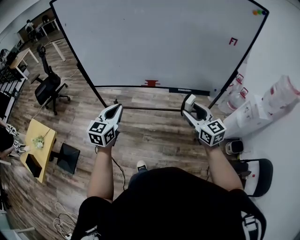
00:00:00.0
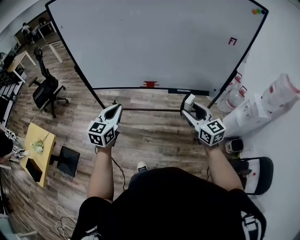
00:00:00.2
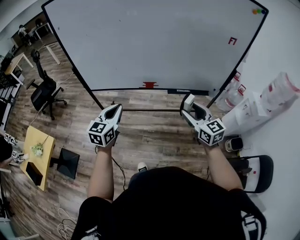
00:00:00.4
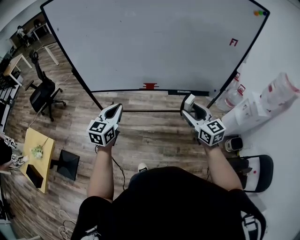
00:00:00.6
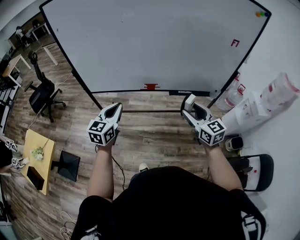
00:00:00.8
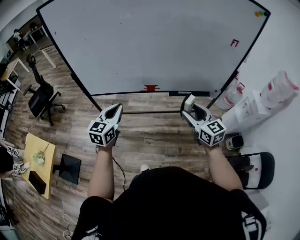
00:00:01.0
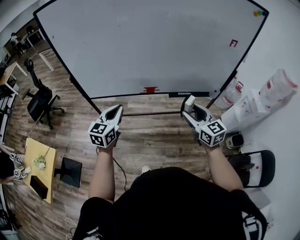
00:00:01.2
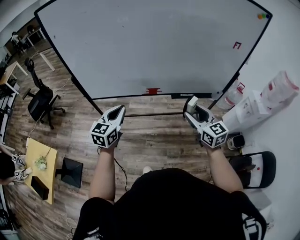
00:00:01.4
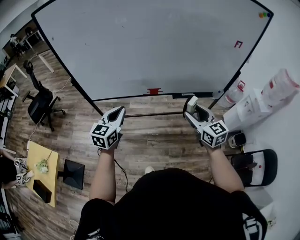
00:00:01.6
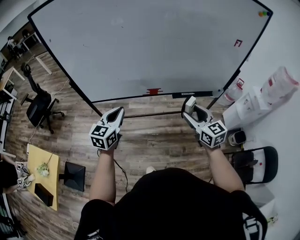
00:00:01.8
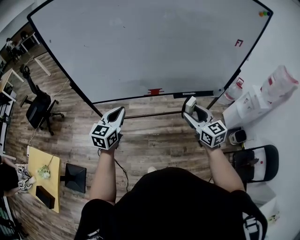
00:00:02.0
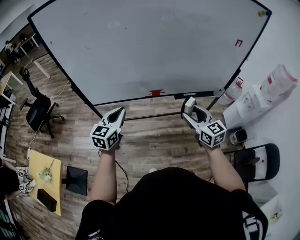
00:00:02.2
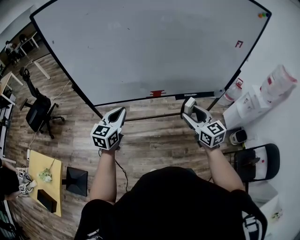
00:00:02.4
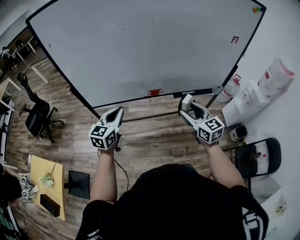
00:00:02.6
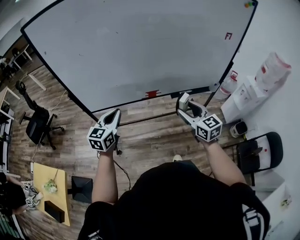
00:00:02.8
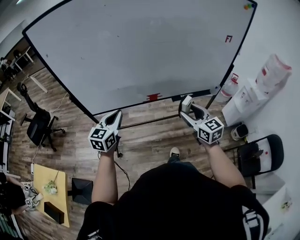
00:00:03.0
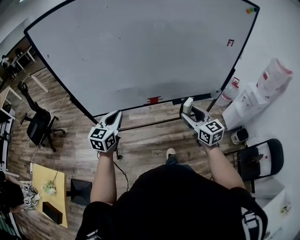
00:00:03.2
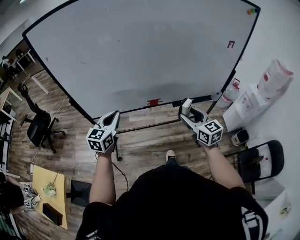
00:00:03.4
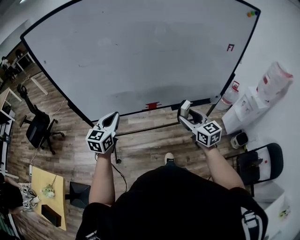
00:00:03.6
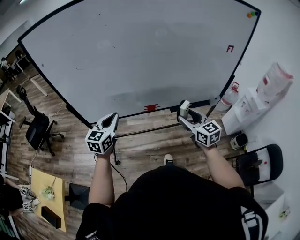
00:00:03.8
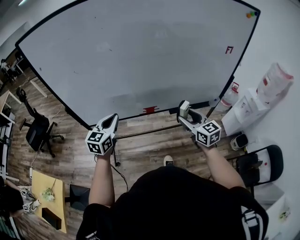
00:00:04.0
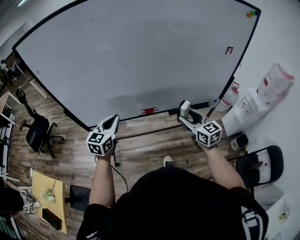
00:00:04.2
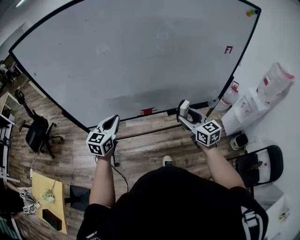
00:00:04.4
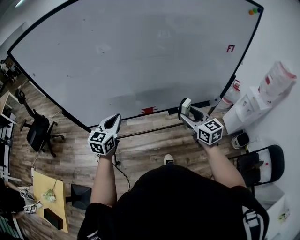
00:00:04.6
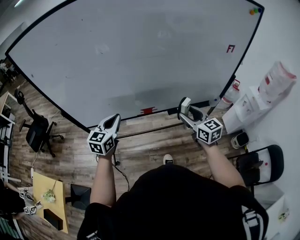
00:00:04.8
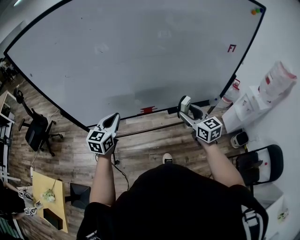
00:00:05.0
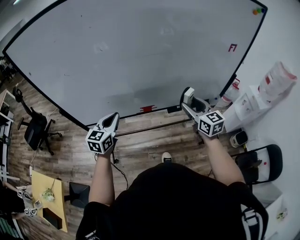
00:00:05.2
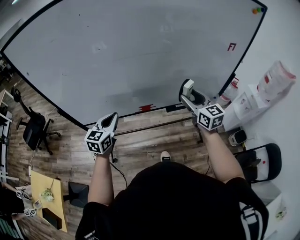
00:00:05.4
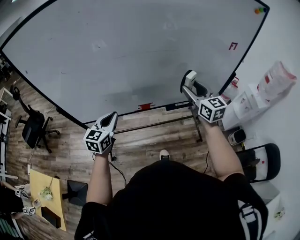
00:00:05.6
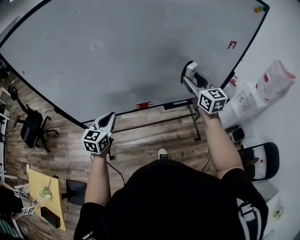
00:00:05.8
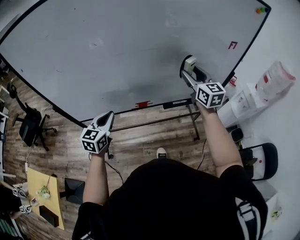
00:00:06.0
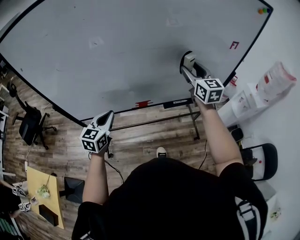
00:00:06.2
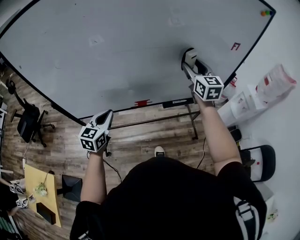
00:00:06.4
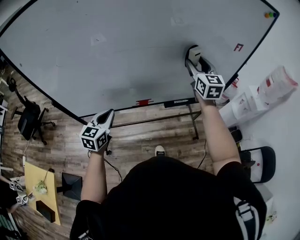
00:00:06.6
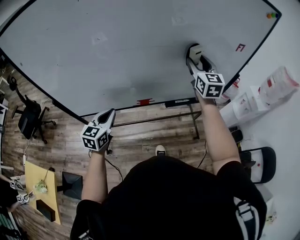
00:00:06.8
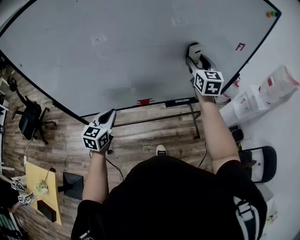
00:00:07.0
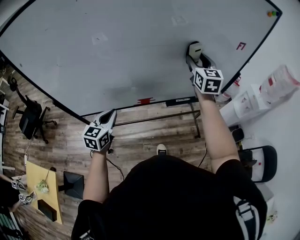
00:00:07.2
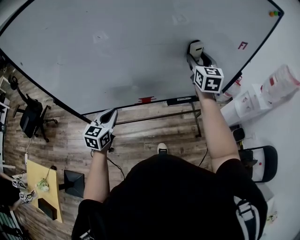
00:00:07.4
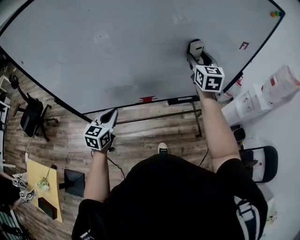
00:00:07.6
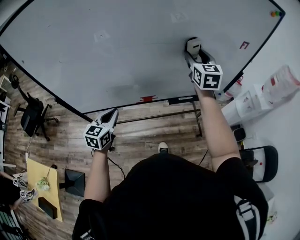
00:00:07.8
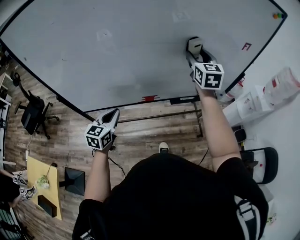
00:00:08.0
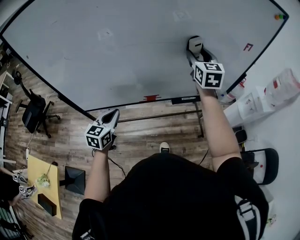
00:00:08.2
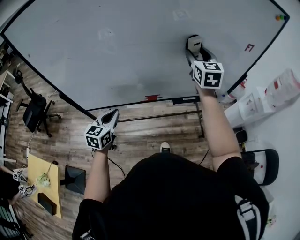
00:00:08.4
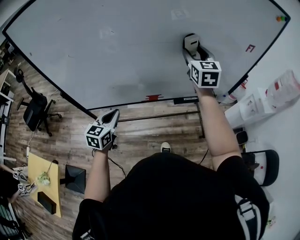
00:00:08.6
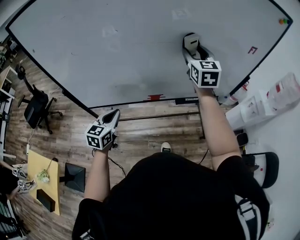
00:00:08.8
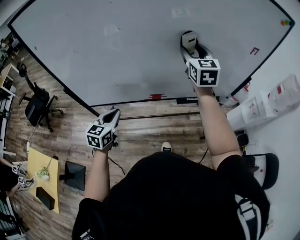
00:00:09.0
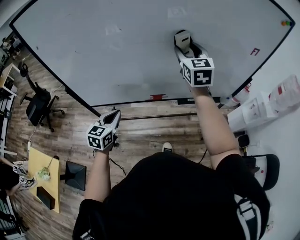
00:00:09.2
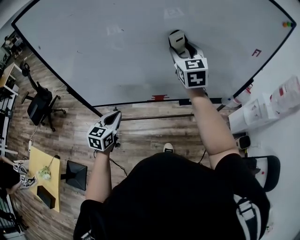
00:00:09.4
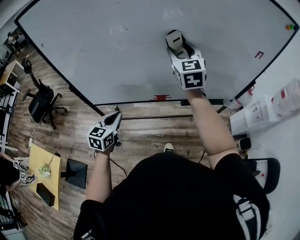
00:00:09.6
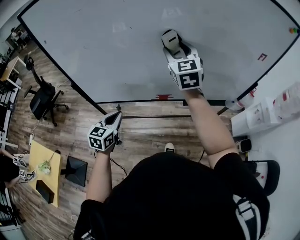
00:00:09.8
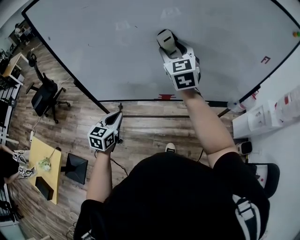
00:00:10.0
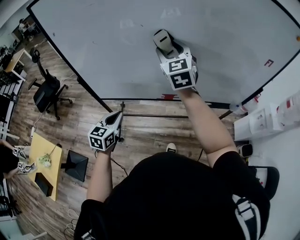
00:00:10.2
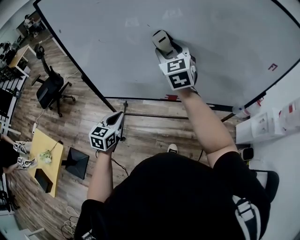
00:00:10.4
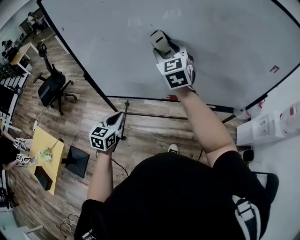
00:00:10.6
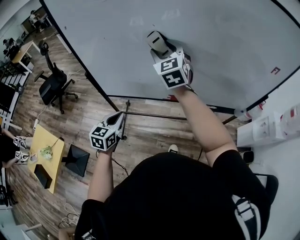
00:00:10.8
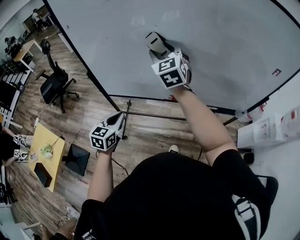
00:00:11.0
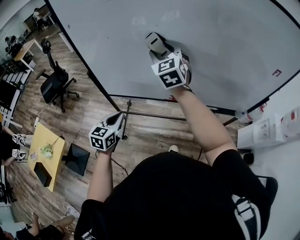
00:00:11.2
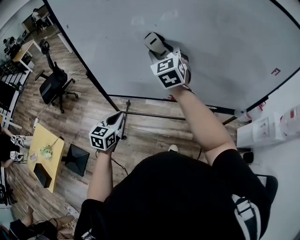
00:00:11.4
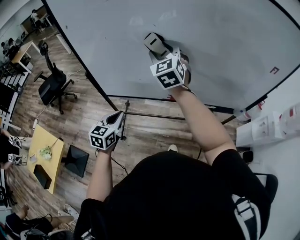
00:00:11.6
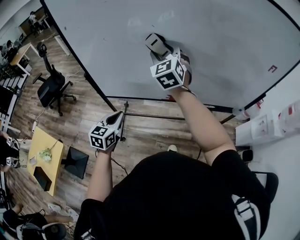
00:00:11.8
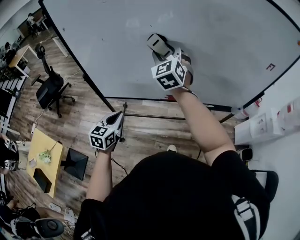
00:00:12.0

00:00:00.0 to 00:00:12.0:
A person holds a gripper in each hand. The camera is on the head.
00:00:00.0 to 00:00:01.6: Both grippers travel together forward and to the left, about 10 cm.
00:00:01.6 to 00:00:03.0: The left gripper shifts by some 5 cm.
00:00:03.0 to 00:00:04.4: The left gripper is displaced forward by about 10 cm. Meanwhile the right gripper heads forward and to the right, covering about 10 cm.
00:00:04.4 to 00:00:06.0: The right gripper heads forward and upward, covering roughly 20 cm.
00:00:06.0 to 00:00:07.6: The right gripper travels forward by about 5 cm.
00:00:07.6 to 00:00:09.0: The right gripper moves to the left, approximately 10 cm.
00:00:09.0 to 00:00:10.4: The right gripper shifts about 20 cm to the left, and rotates approximately 20 degrees; the left gripper goes approximately 5 cm to the left.
00:00:10.4 to 00:00:12.0: The grippers make only small movements.

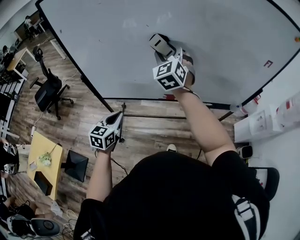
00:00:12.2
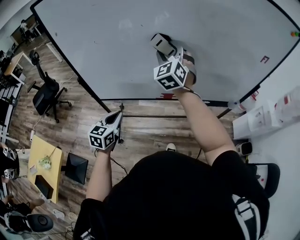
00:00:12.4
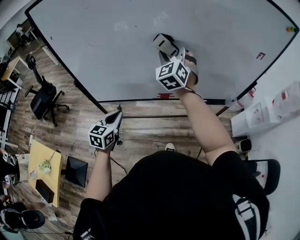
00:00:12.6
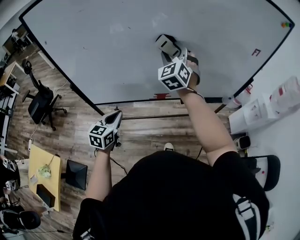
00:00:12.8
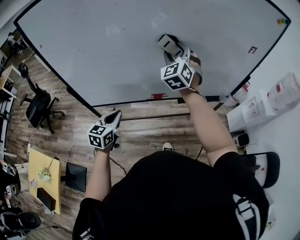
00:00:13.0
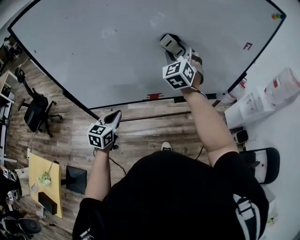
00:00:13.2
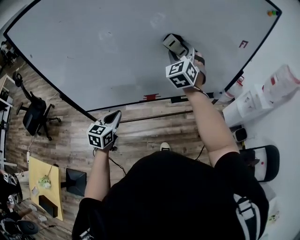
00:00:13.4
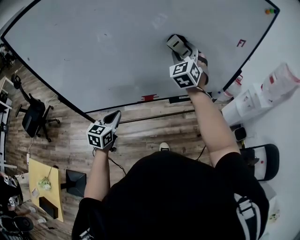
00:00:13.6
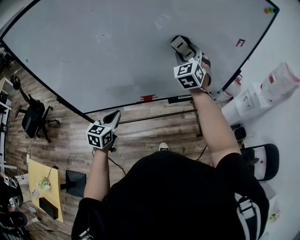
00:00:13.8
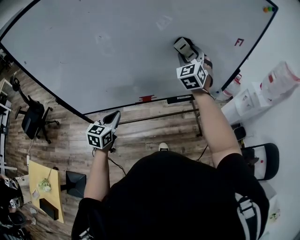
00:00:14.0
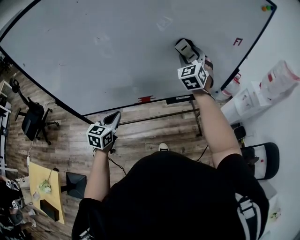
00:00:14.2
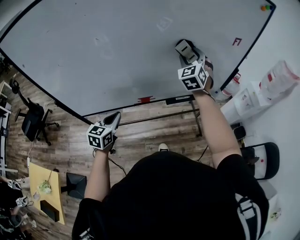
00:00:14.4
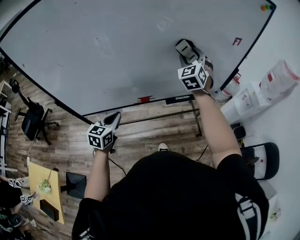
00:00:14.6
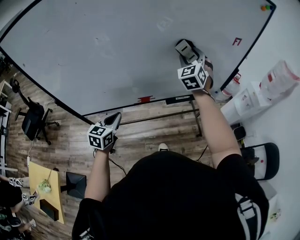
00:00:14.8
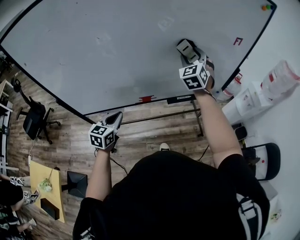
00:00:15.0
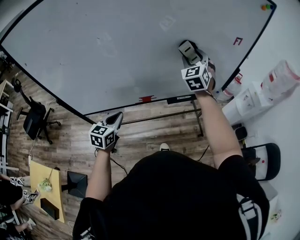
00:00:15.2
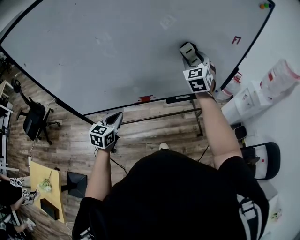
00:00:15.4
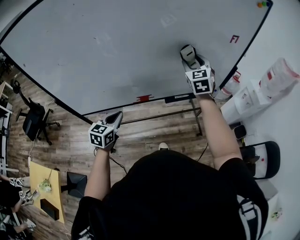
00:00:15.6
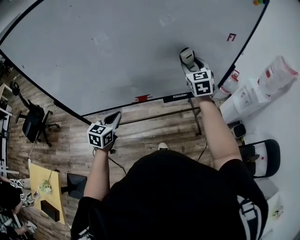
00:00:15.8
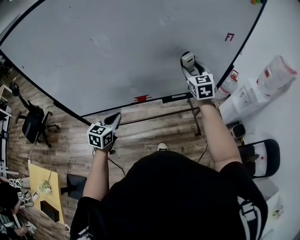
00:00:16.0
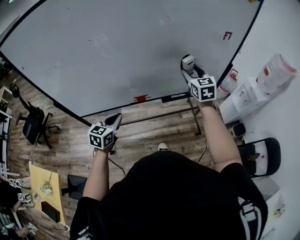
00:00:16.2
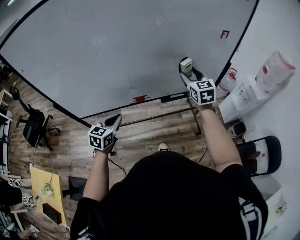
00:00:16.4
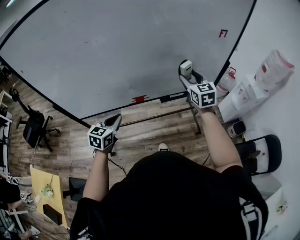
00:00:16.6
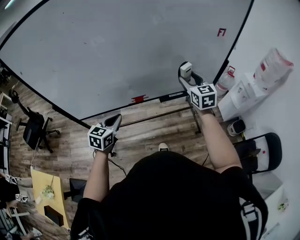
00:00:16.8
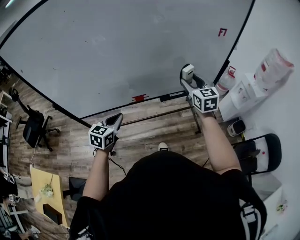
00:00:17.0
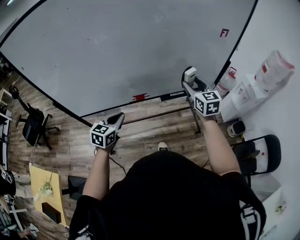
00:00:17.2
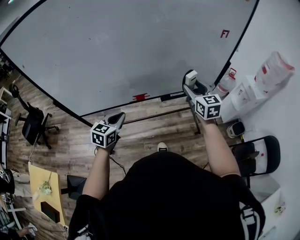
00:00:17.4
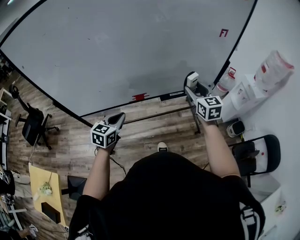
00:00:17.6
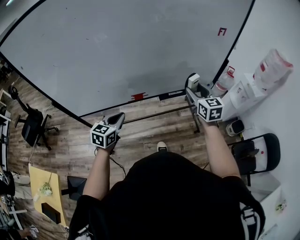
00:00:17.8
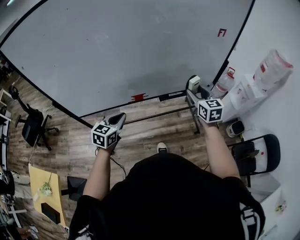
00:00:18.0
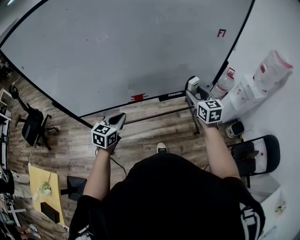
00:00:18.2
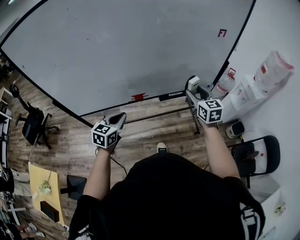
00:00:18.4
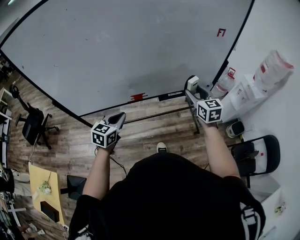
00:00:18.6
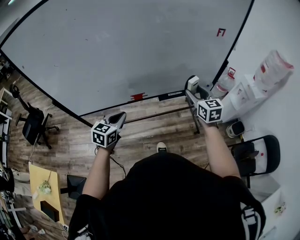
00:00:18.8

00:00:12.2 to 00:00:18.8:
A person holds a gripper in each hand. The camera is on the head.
00:00:12.2 to 00:00:13.8: The right gripper is displaced to the right by about 25 cm, and swivels some 20 degrees; the left gripper heads to the right and forward, covering approximately 10 cm.
00:00:13.8 to 00:00:15.4: The right gripper heads to the right, covering approximately 5 cm.
00:00:15.4 to 00:00:17.2: The right gripper moves backward, downward and to the right, about 15 cm, and swivels about 30 degrees.
00:00:17.2 to 00:00:18.8: The right gripper changes place by approximately 5 cm.

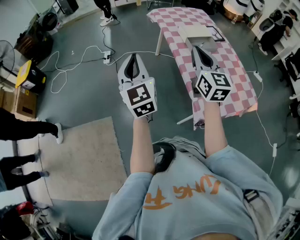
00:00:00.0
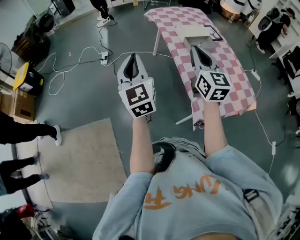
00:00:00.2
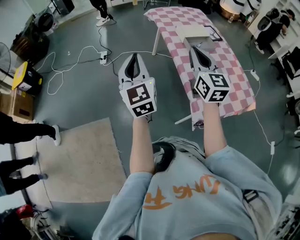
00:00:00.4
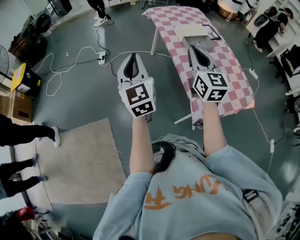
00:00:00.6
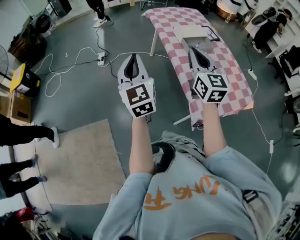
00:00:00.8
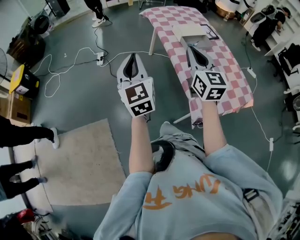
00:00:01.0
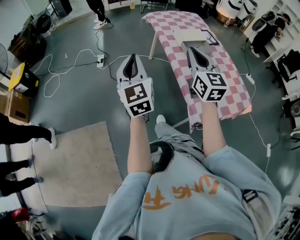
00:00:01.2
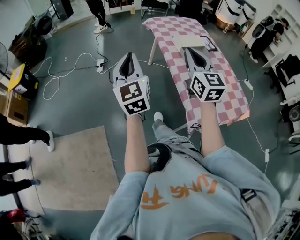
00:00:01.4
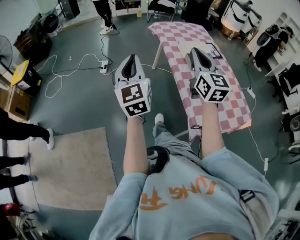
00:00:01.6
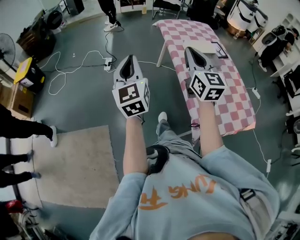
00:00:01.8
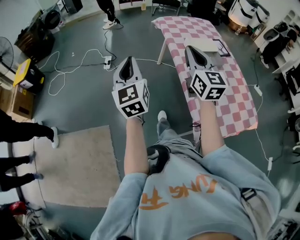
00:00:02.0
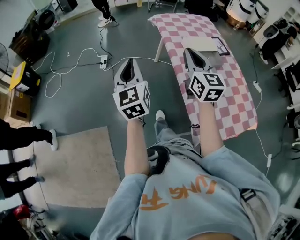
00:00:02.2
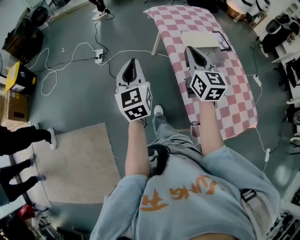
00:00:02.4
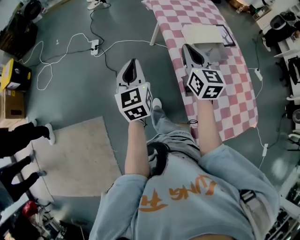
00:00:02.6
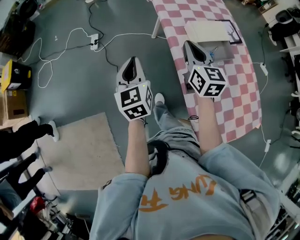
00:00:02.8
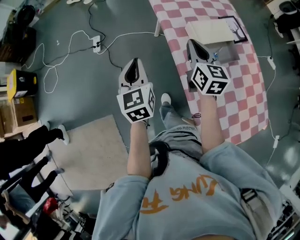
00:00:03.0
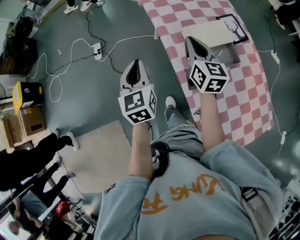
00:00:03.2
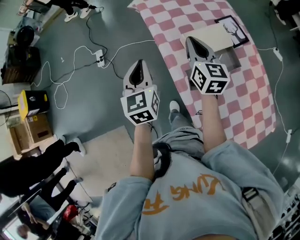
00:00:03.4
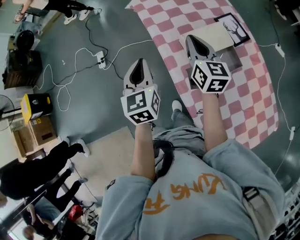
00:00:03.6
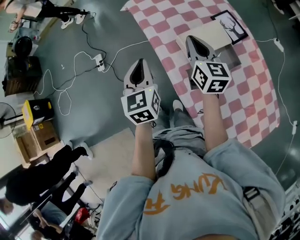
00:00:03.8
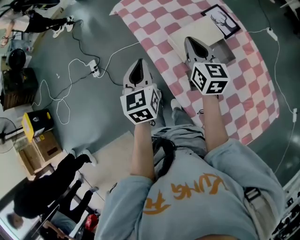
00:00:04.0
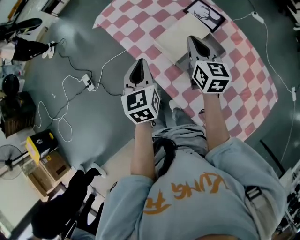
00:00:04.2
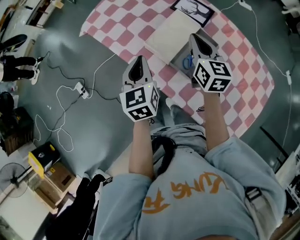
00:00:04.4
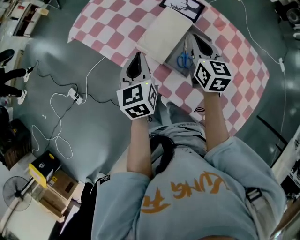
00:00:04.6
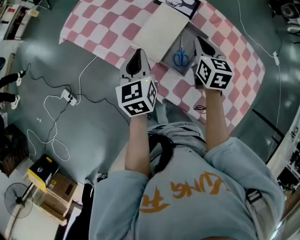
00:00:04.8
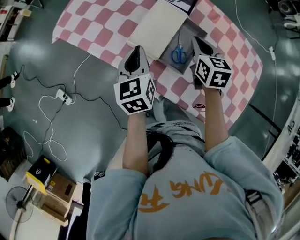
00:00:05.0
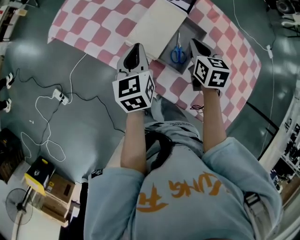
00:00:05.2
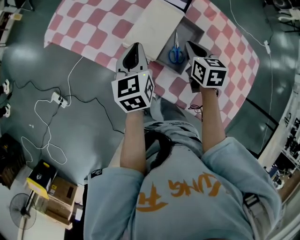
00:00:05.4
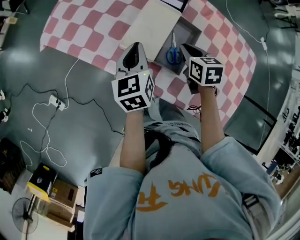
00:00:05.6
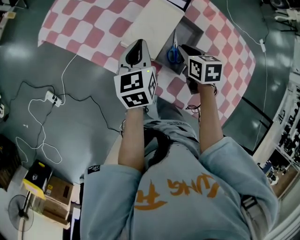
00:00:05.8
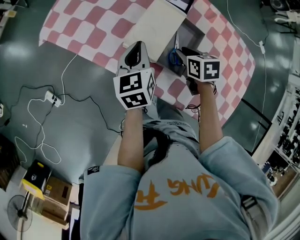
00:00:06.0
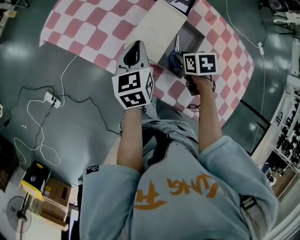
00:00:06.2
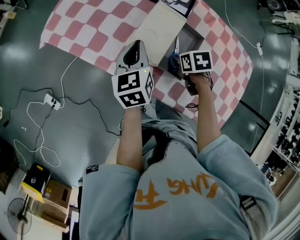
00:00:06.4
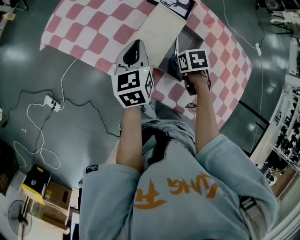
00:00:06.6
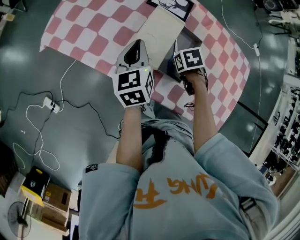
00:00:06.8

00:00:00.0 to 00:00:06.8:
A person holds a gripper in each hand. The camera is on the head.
00:00:00.0 to 00:00:01.4: The grippers stay close to where they were, moving slightly.
00:00:01.4 to 00:00:02.8: The grippers both shift forward and downward by roughly 30 cm. The left gripper changes its angle by about 20 degrees. Meanwhile the right gripper turns by roughly 20 degrees.
00:00:02.8 to 00:00:04.0: Both grippers move forward and to the right, about 25 cm. The left gripper turns by approximately 20 degrees.
00:00:04.0 to 00:00:05.4: The right gripper shifts by some 20 cm, and changes its angle by some 40 degrees. Meanwhile the left gripper moves roughly 20 cm, and changes its angle by approximately 30 degrees.
00:00:05.4 to 00:00:06.8: The right gripper shifts approximately 10 cm downward, angles its fingers downward, by approximately 40 degrees, and opens up.
